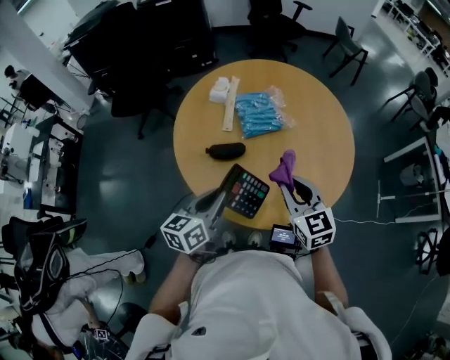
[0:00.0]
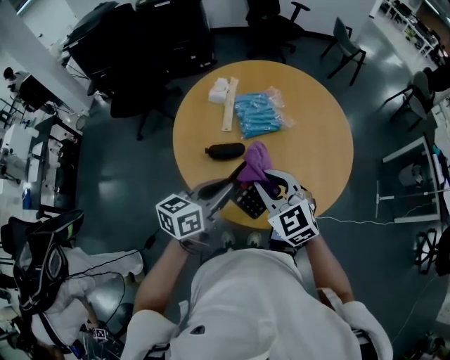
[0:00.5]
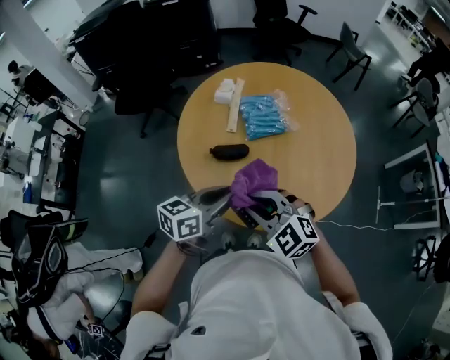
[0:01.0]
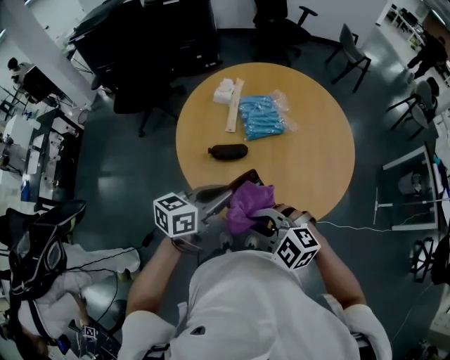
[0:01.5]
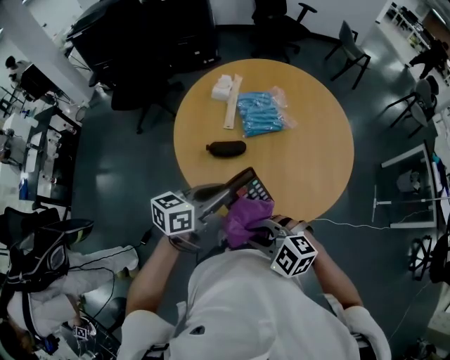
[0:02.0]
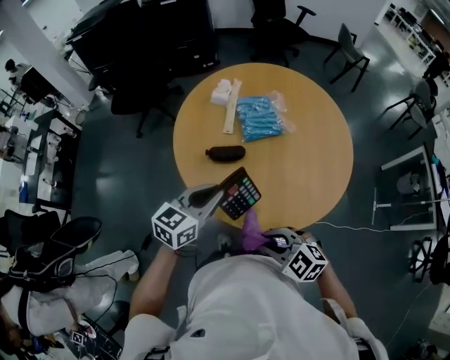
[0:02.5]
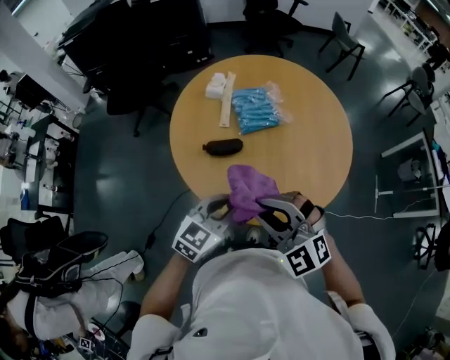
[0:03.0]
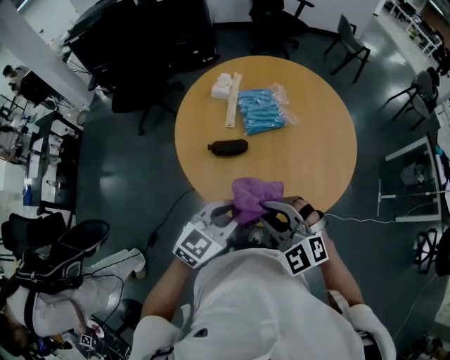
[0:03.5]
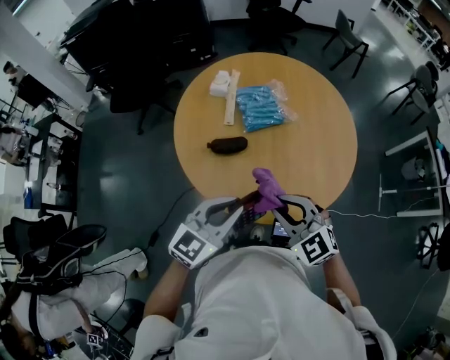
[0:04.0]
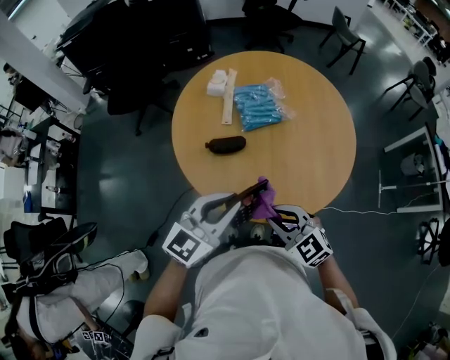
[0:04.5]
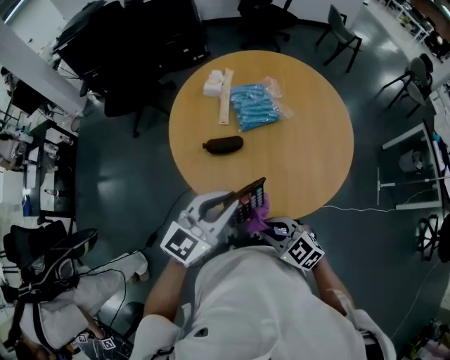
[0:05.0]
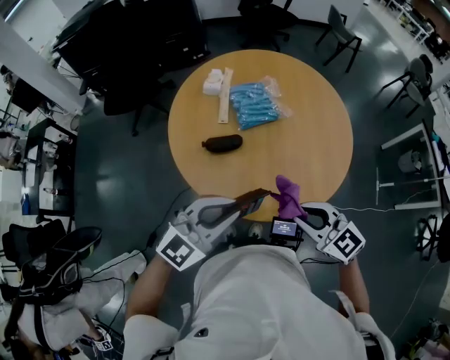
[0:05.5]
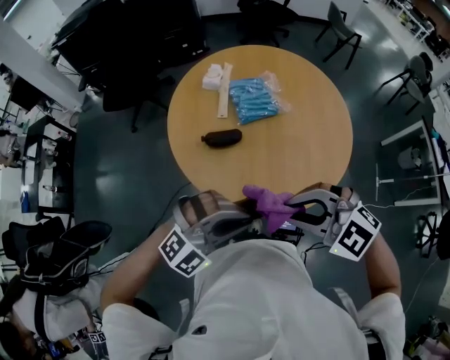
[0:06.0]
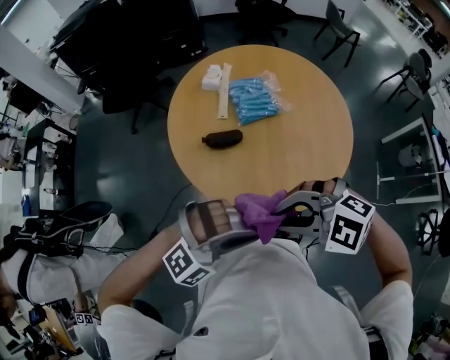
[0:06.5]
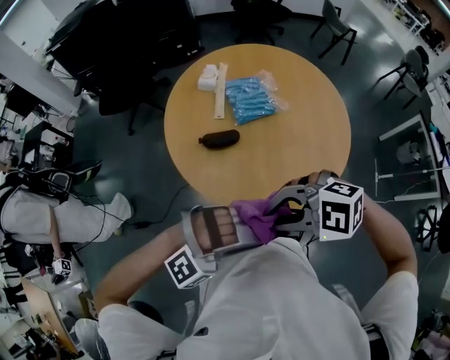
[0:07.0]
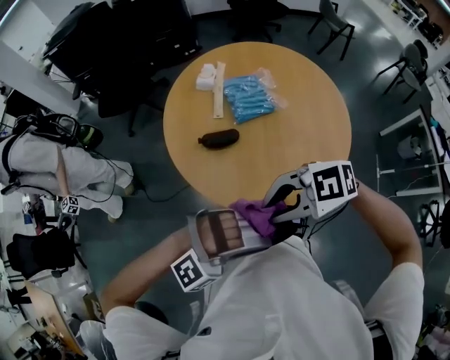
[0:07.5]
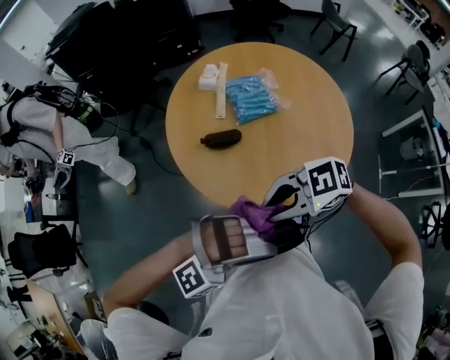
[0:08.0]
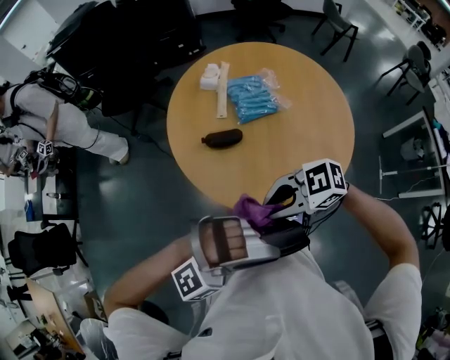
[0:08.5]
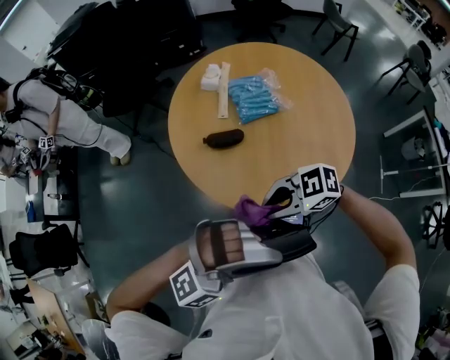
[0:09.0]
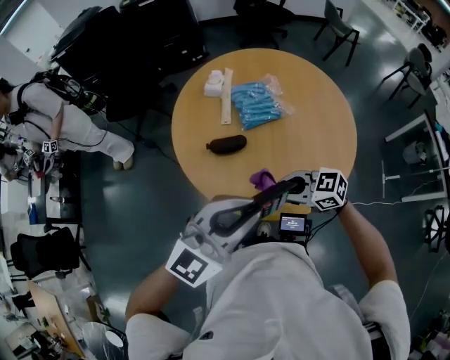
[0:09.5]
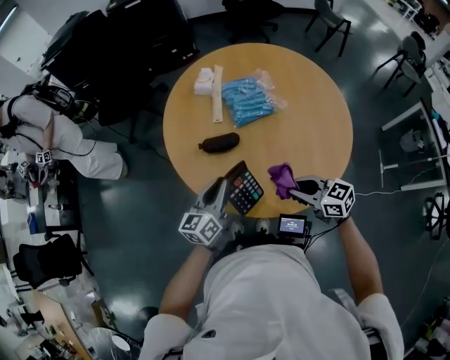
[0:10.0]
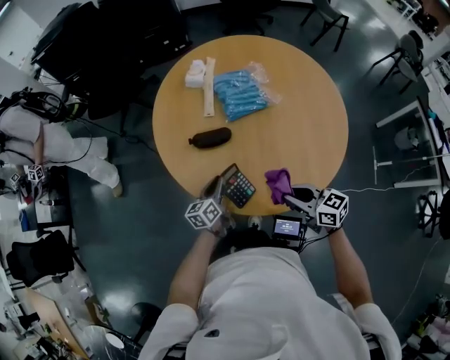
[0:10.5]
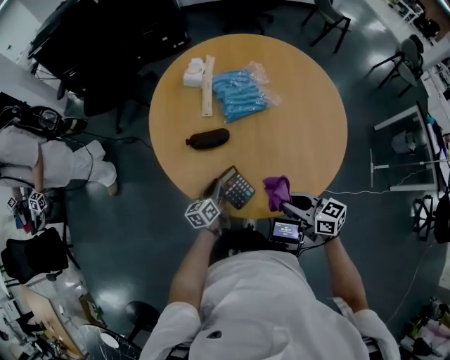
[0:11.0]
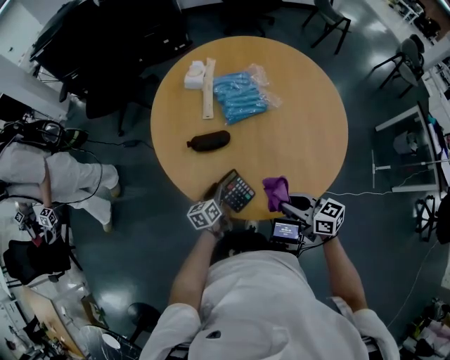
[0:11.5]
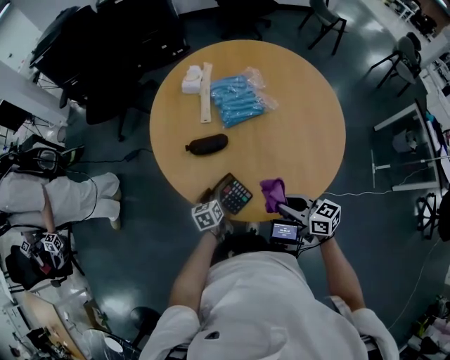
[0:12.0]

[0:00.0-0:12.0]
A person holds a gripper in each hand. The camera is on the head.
0:00.0 to 0:02.0: The right gripper shifts by roughly 20 cm, and turns by some 60 degrees.
0:02.0 to 0:04.0: The left gripper shifts by roughly 5 cm, and changes its angle by about 40 degrees, while the right gripper ends up about 10 cm from where it was, and changes its angle by approximately 30 degrees.
0:04.0 to 0:06.0: The left gripper changes place by approximately 5 cm, and rolls clockwise, seen from behind, by about 50 degrees. Meanwhile the right gripper shifts approximately 5 cm upward, and swivels roughly 30 degrees.
0:06.0 to 0:08.0: The right gripper changes place by roughly 5 cm, and swivels about 40 degrees. The left gripper shifts by about 10 cm, and rotates approximately 20 degrees.
0:08.0 to 0:10.0: The left gripper changes place by roughly 30 cm, and rotates around the line of its fingers by some 100 degrees, counterclockwise from behind, while the right gripper goes some 15 cm downward, and swivels about 50 degrees.
0:10.0 to 0:12.0: The right gripper ends up some 5 cm from where it was; the left gripper travels downward by some 25 cm, and points its fingers about 30 degrees further downward.

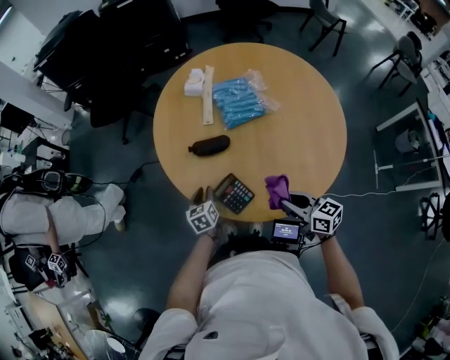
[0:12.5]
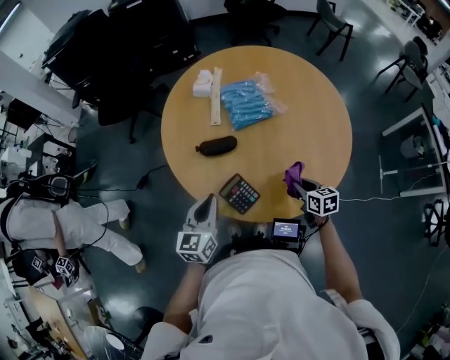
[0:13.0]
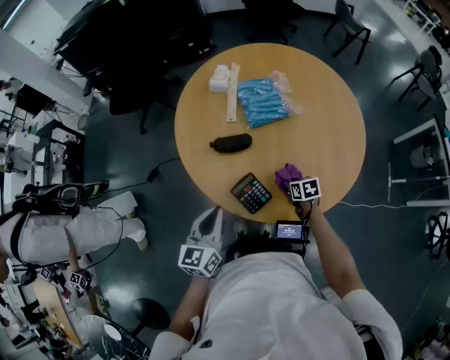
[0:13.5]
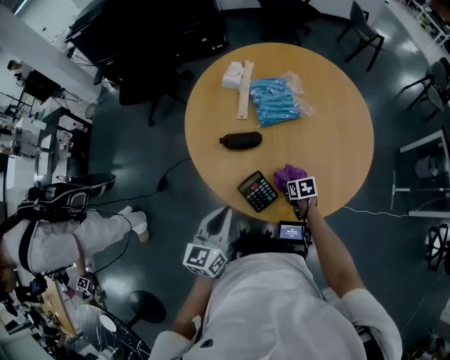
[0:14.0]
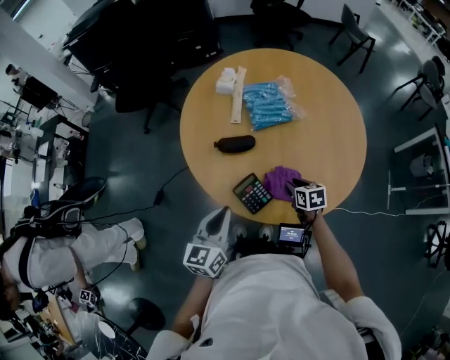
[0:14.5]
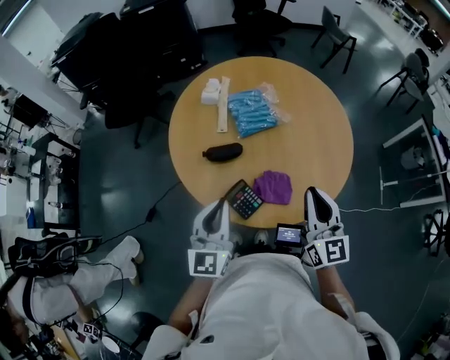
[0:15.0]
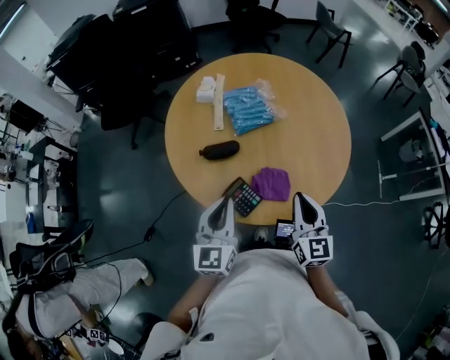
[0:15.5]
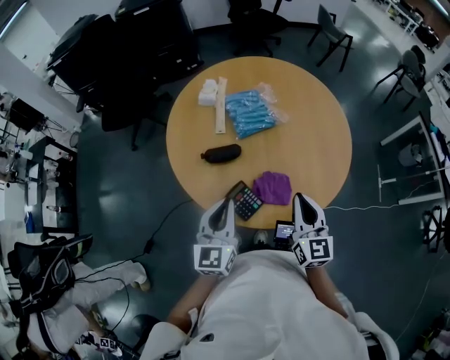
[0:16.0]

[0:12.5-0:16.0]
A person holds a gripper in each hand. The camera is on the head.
0:12.5 to 0:14.5: The right gripper heads downward and forward, covering some 15 cm, and points its fingers some 30 degrees further downward. Meanwhile the left gripper shifts about 25 cm upward and backward, changes its angle by roughly 30 degrees, and closes.
0:14.5 to 0:16.0: The right gripper moves upward, approximately 25 cm, tilts its fingers approximately 40 degrees upward, and closes up; the left gripper goes approximately 5 cm upward.

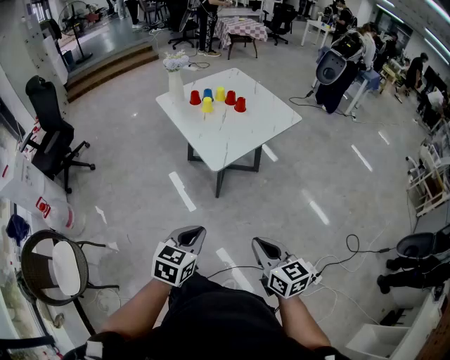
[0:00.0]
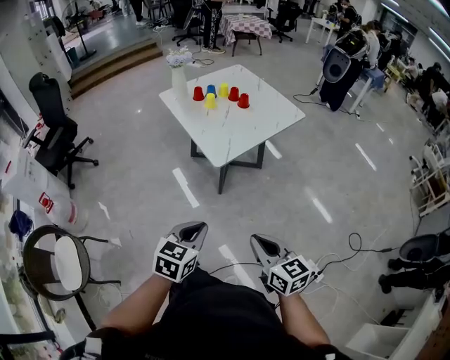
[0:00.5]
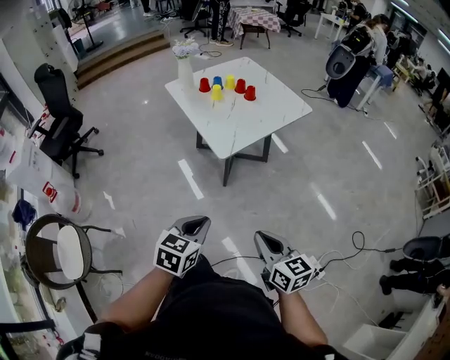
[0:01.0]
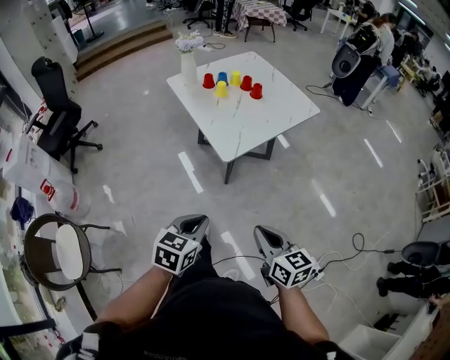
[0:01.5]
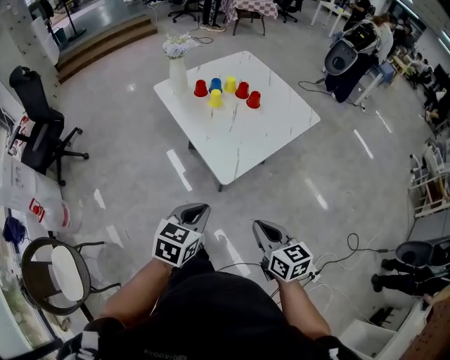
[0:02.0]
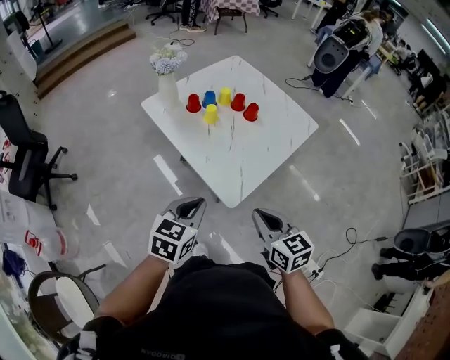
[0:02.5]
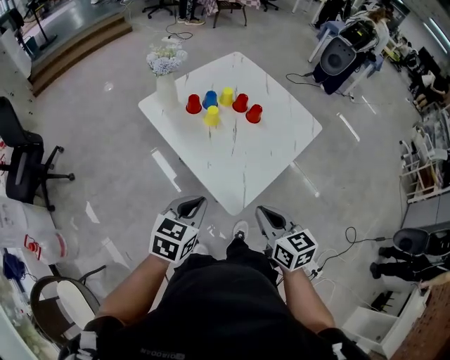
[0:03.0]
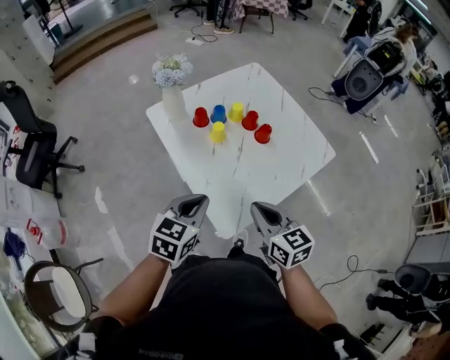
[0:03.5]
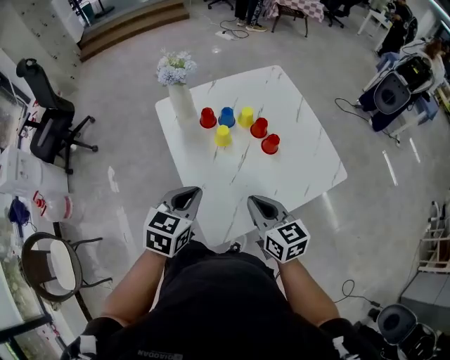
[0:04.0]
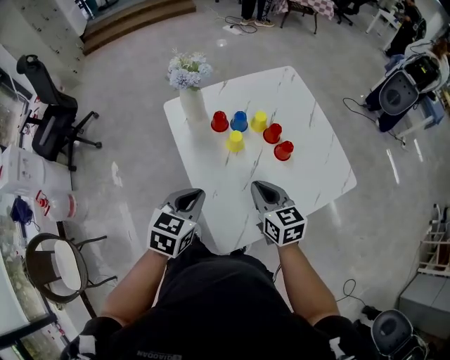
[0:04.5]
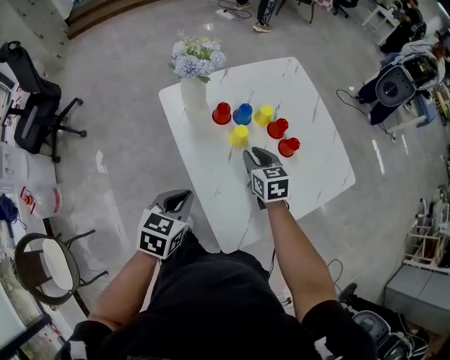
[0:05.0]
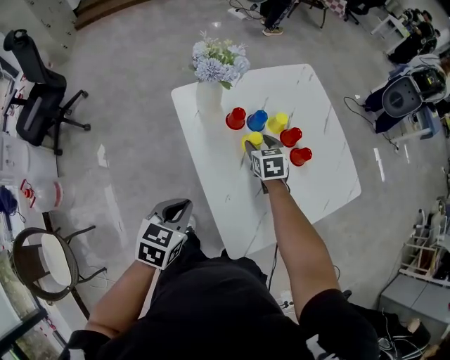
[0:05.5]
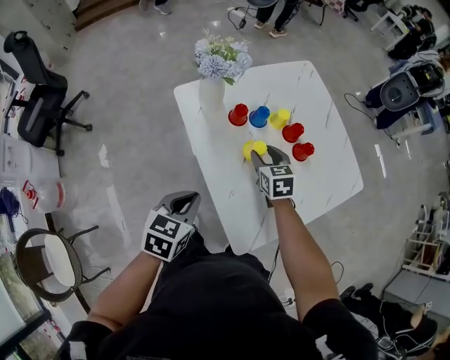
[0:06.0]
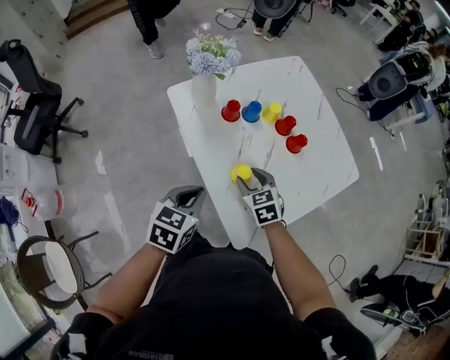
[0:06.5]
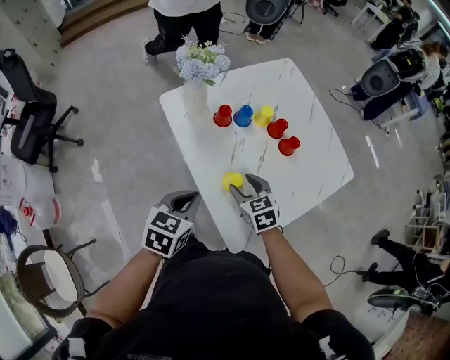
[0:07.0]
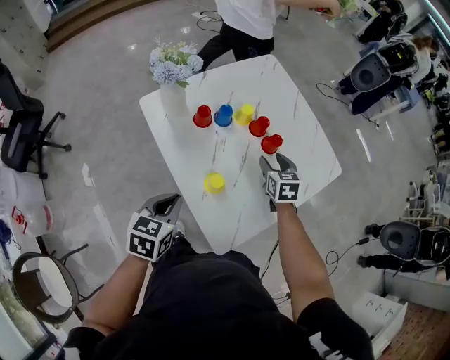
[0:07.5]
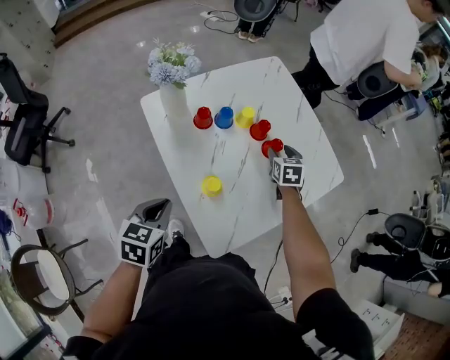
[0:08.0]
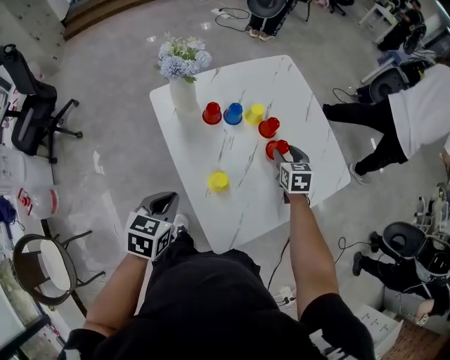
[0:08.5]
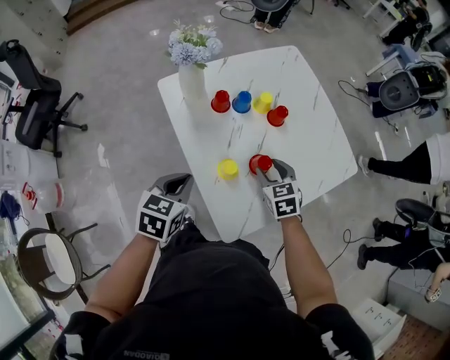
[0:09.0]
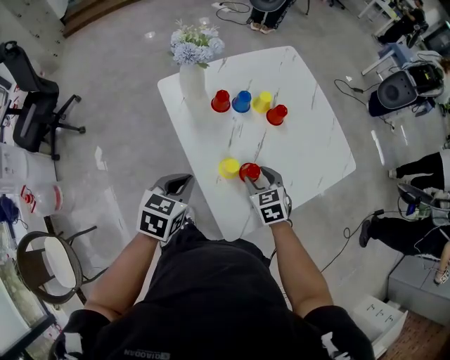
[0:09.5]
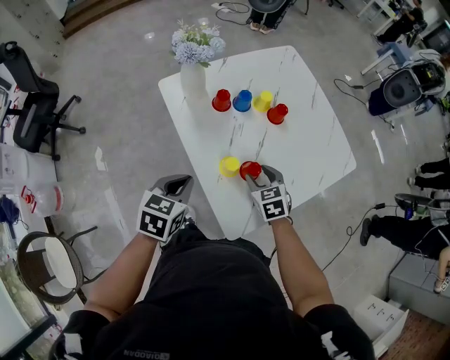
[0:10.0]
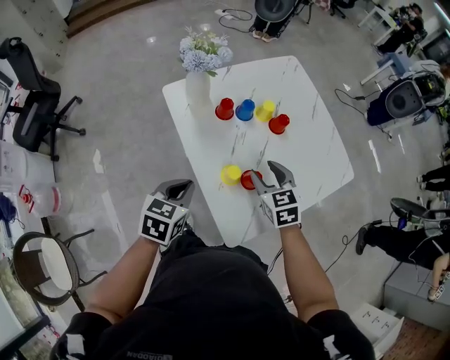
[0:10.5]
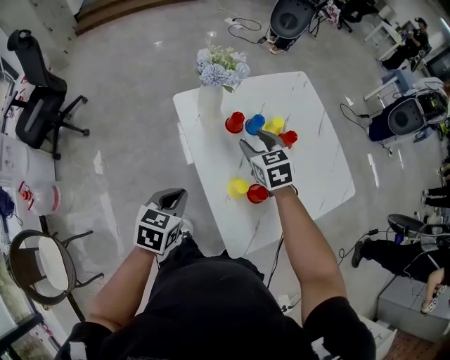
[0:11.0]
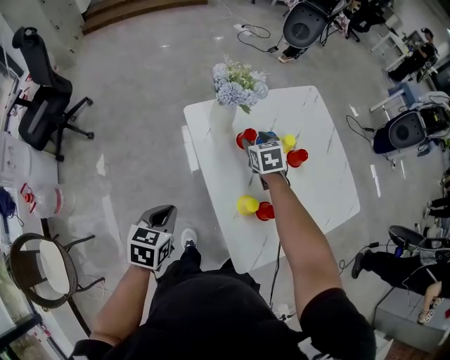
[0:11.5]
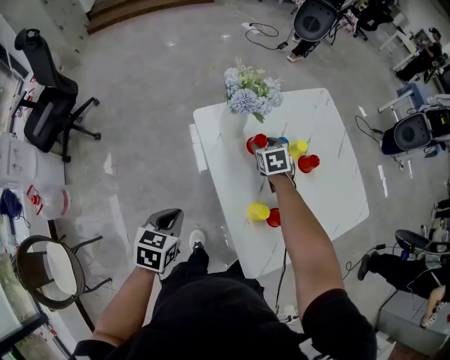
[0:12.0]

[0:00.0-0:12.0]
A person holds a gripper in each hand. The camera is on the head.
0:00.0 to 0:02.0: The grippers both shift forward by about 20 cm.
0:02.0 to 0:04.0: Both grippers travel together forward, approximately 35 cm.
0:04.0 to 0:06.0: The right gripper travels forward, downward and to the left by roughly 25 cm, turns by roughly 30 degrees, and opens its fingers; the left gripper travels to the left and downward by roughly 15 cm.
0:06.0 to 0:08.0: The right gripper heads to the right, covering approximately 20 cm.
0:08.0 to 0:10.0: The right gripper travels backward and to the left by some 20 cm, and turns by roughly 20 degrees.
0:10.0 to 0:12.0: The left gripper travels to the left by roughly 15 cm. The right gripper is displaced forward and to the left by about 30 cm.
